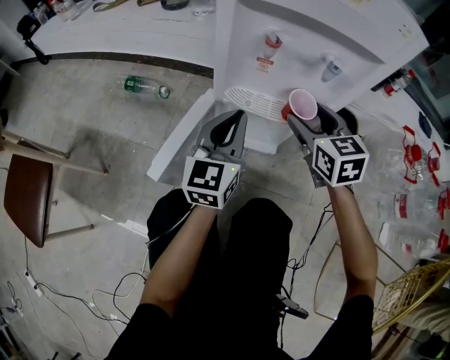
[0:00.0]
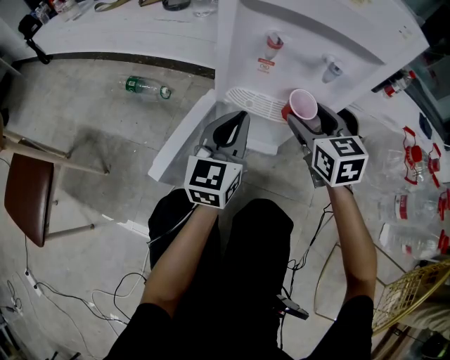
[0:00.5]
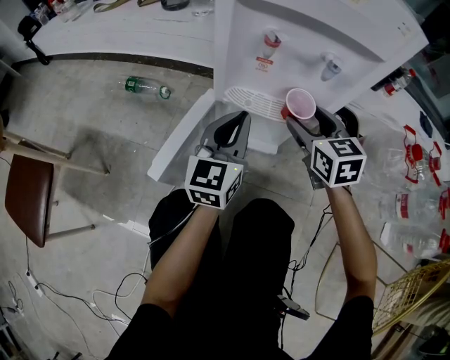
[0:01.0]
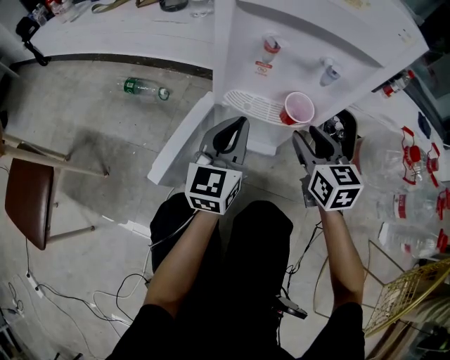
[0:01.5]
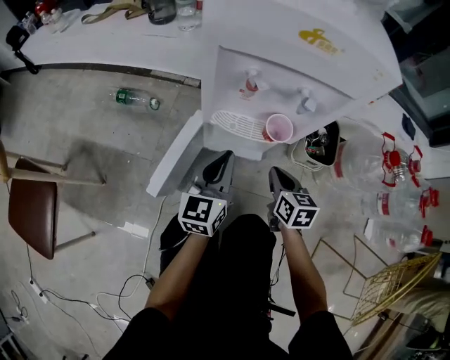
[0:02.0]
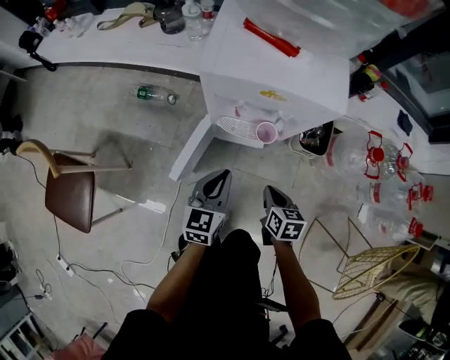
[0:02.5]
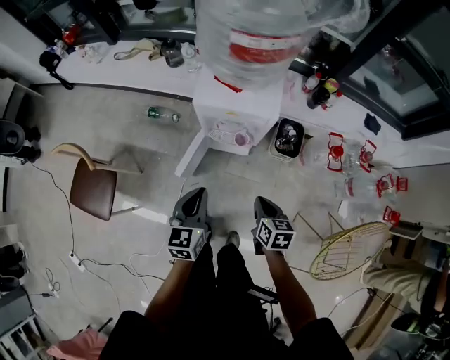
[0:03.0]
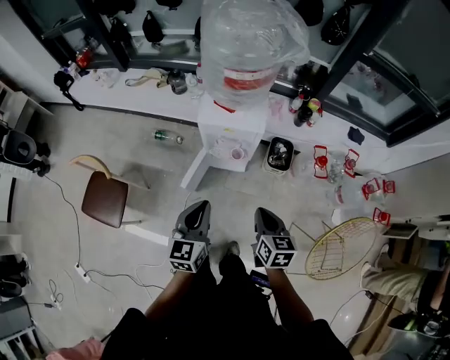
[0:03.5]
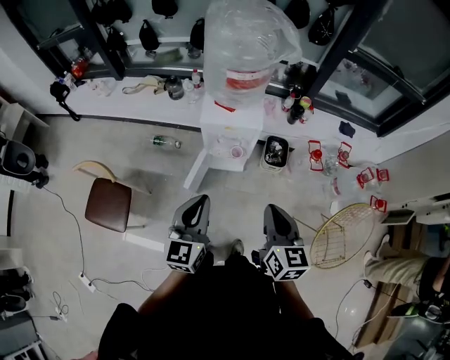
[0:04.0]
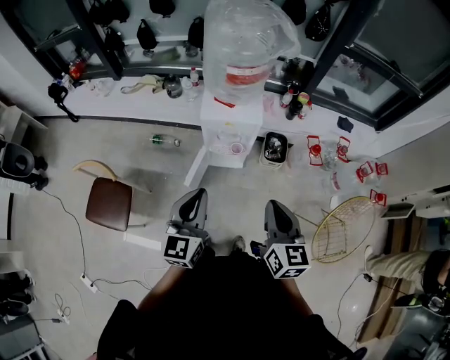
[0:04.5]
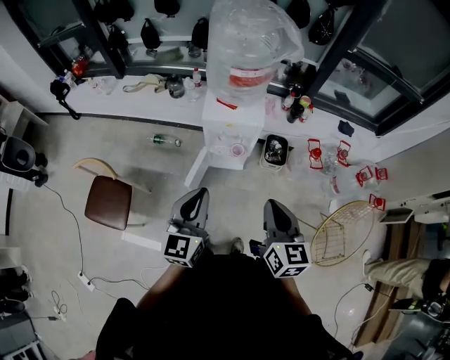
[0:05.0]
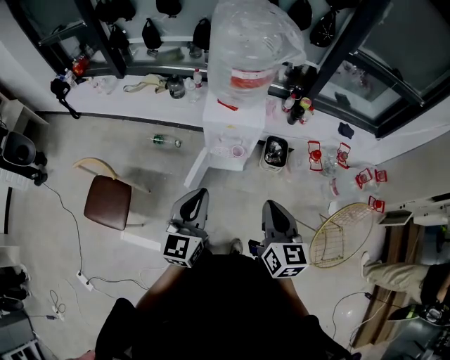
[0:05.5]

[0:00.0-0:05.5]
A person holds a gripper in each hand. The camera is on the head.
0:00.0 to 0:02.0: The right gripper moves downward and backward, some 10 cm, changes its angle by some 30 degrees, and closes its fingers.
0:02.0 to 0:03.5: The two grippers go some 60 cm upward and backward.
0:03.5 to 0:05.5: Both grippers move upward, approximately 15 cm.

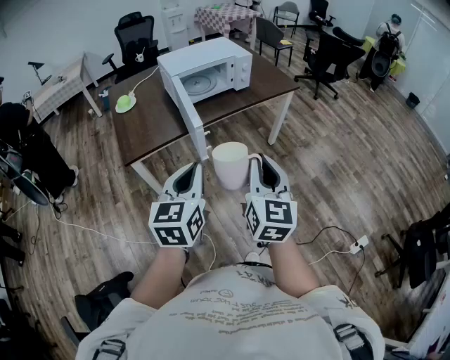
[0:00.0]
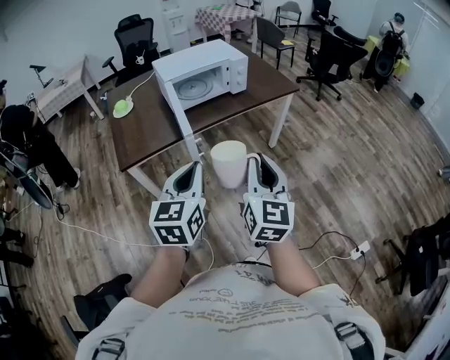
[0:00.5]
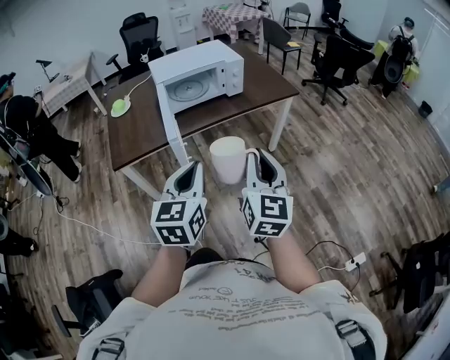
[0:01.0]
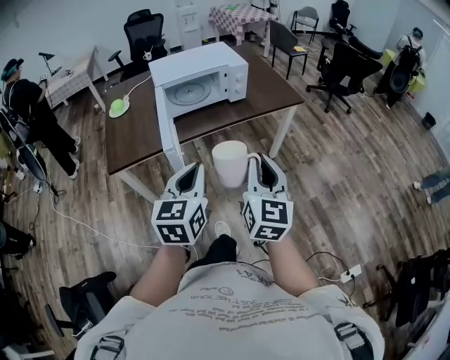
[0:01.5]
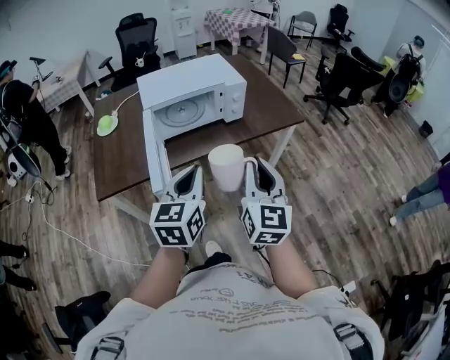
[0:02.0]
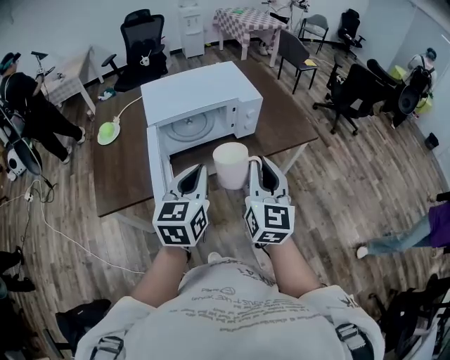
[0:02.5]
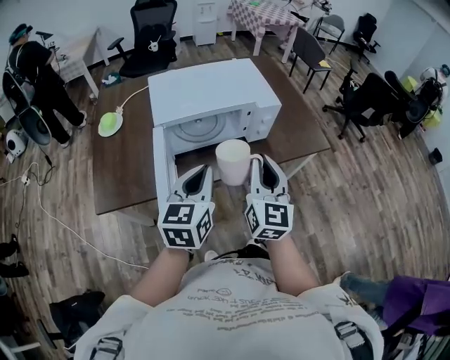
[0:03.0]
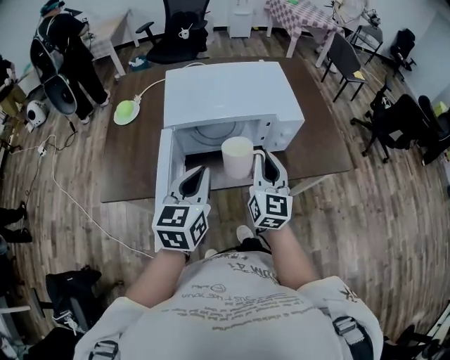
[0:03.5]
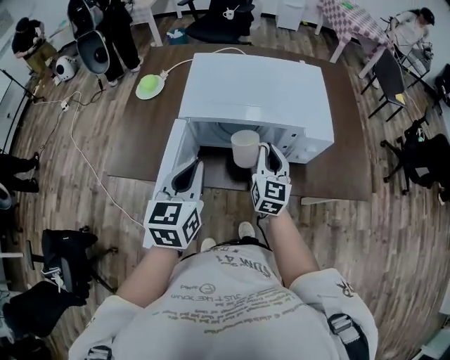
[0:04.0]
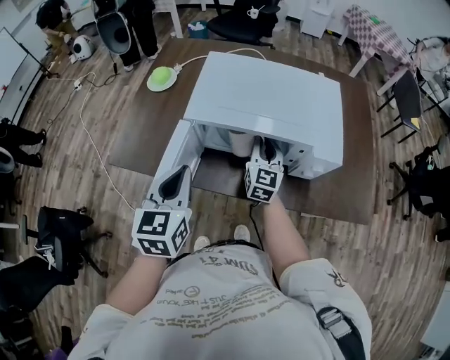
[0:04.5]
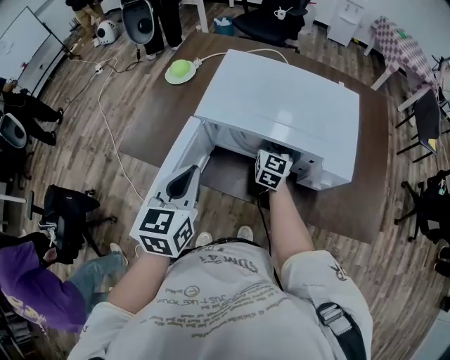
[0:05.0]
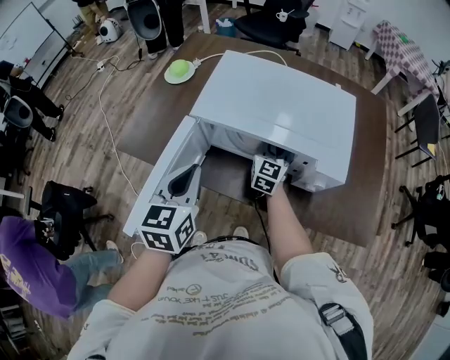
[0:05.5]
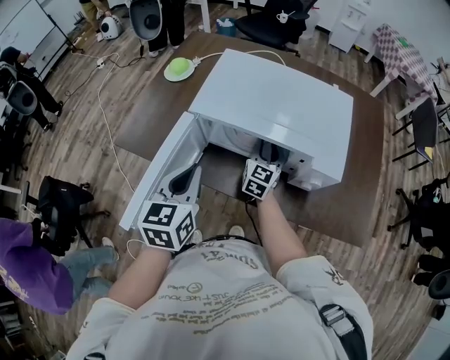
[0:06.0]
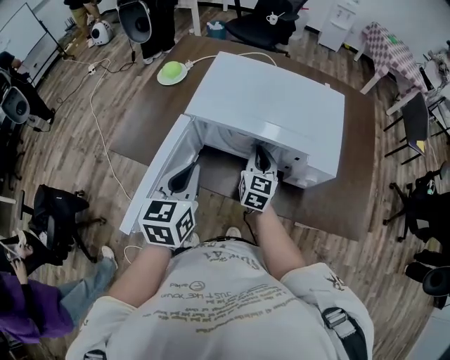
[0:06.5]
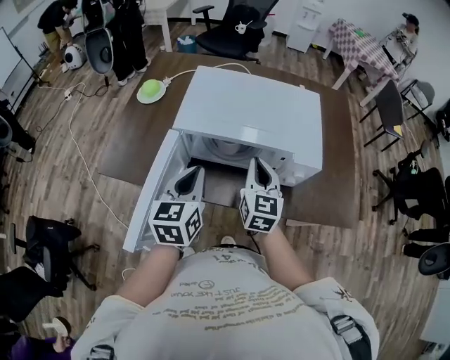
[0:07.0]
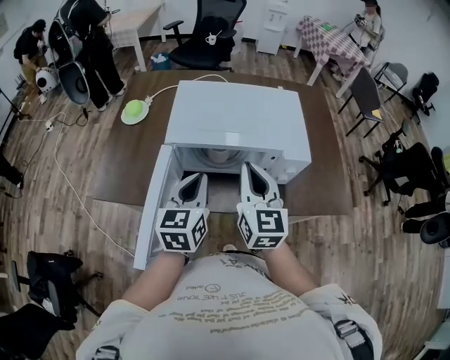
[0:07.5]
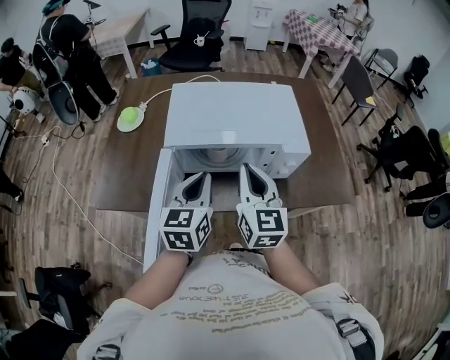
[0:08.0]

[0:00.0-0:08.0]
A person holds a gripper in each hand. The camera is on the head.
0:00.0 to 0:02.0: The right gripper travels forward by approximately 25 cm. The left gripper heads forward and to the right, covering about 30 cm.
0:02.0 to 0:04.0: The right gripper heads forward and downward, covering approximately 40 cm, and turns by some 20 degrees. Meanwhile the left gripper shifts some 25 cm forward, and rotates approximately 30 degrees.
0:04.0 to 0:06.0: The right gripper goes roughly 15 cm forward and downward, and opens up.
0:06.0 to 0:08.0: The right gripper goes some 25 cm upward and backward, and closes its fingers. The left gripper changes its angle by about 20 degrees.

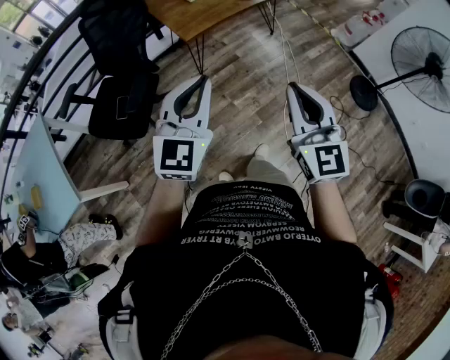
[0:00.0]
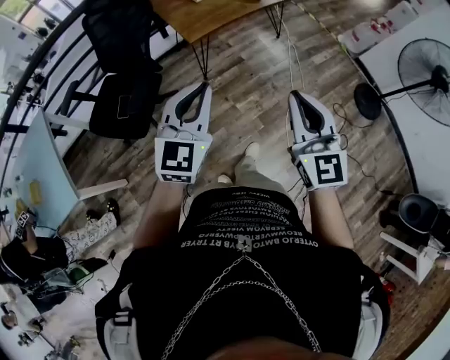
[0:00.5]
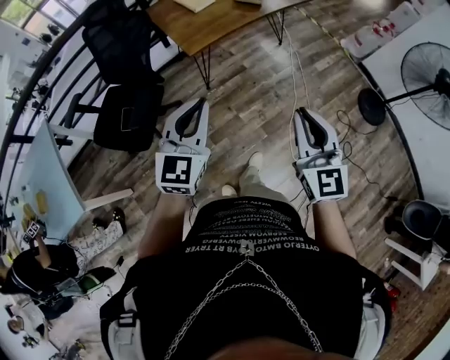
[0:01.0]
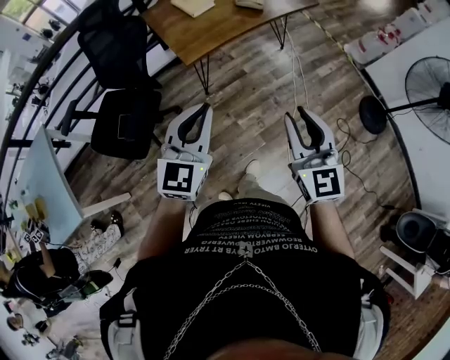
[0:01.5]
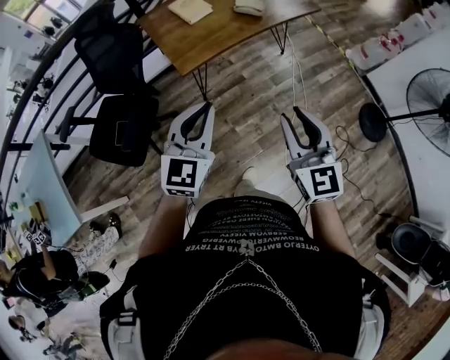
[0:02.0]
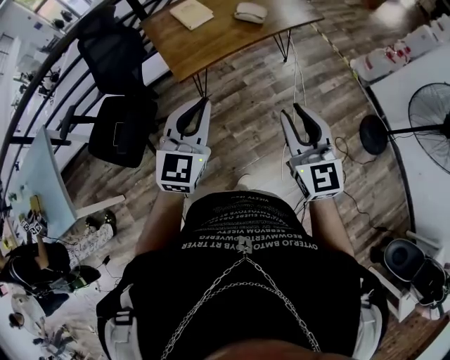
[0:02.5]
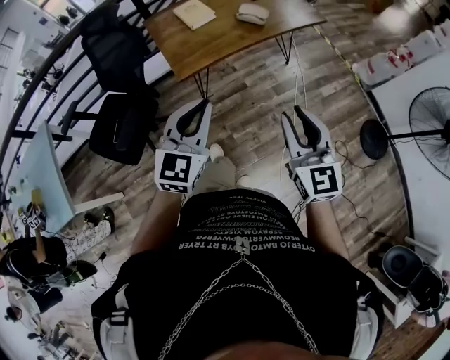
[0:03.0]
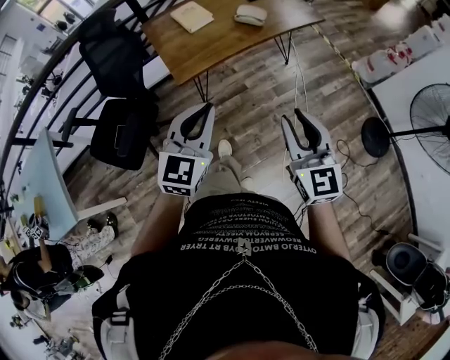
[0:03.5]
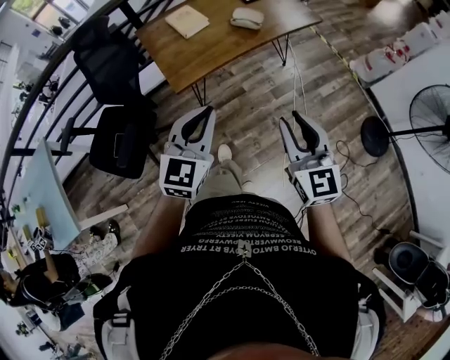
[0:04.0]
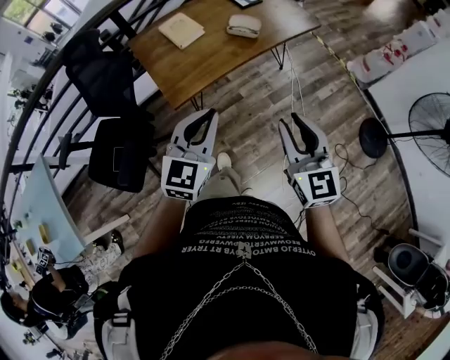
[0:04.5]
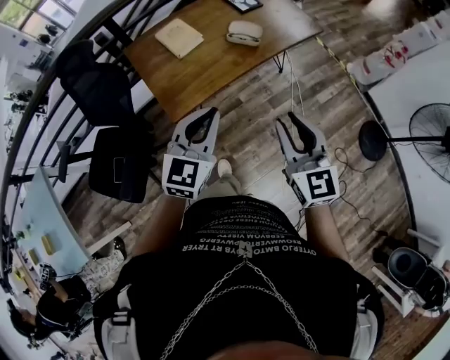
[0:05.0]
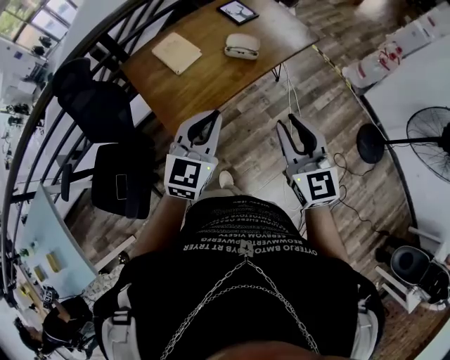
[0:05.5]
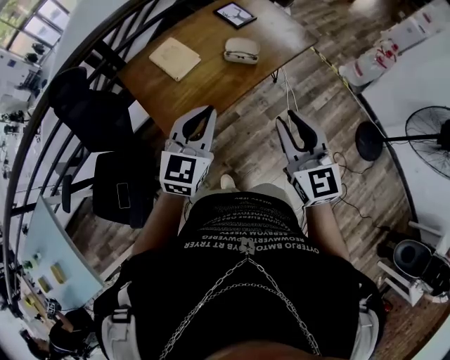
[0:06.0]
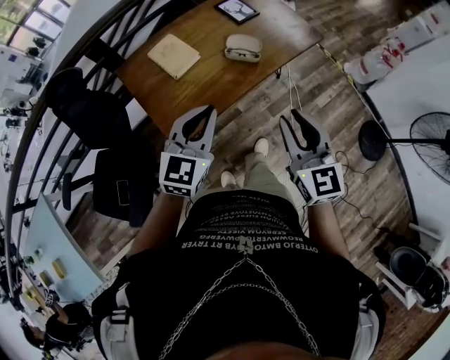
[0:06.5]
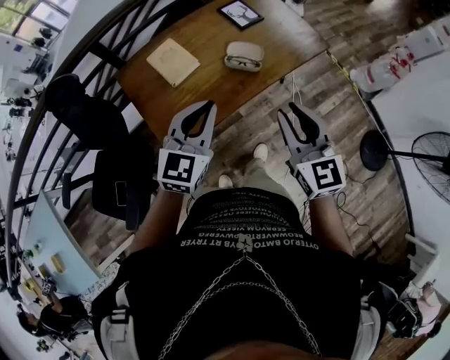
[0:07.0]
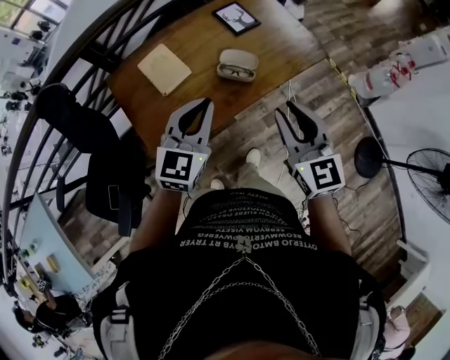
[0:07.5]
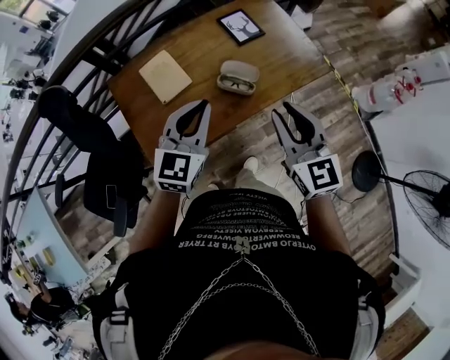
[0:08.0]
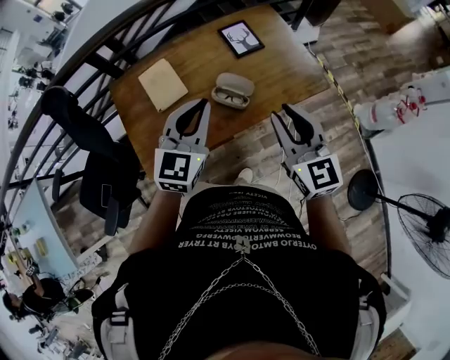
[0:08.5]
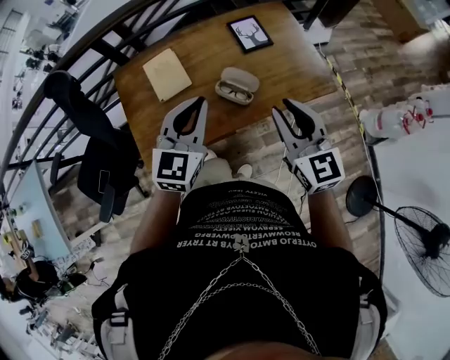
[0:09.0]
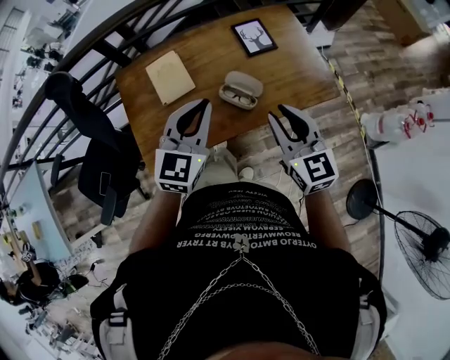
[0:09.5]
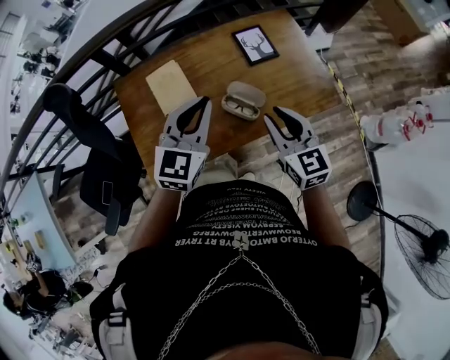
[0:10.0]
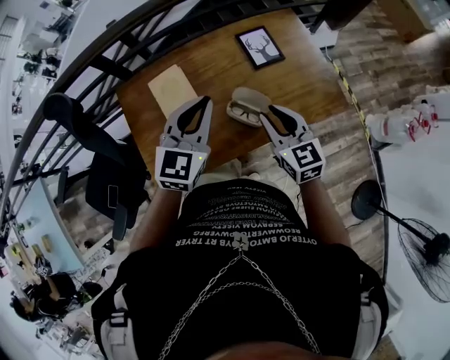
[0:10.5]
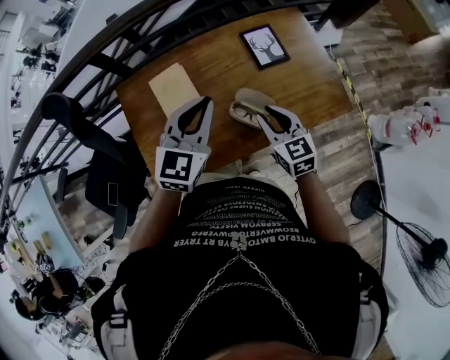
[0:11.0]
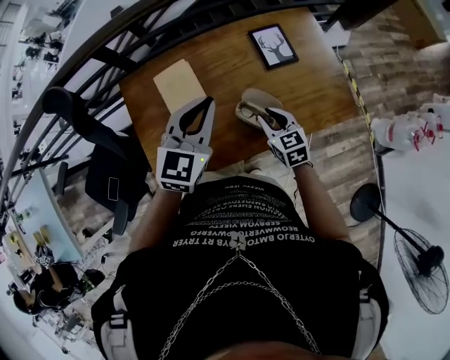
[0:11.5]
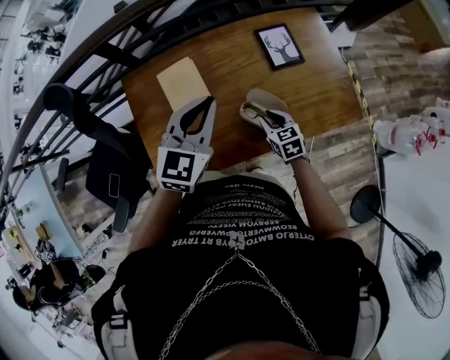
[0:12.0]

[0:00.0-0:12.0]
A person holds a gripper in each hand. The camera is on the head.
0:00.0 to 0:02.0: The two grippers go roughly 20 cm forward. The right gripper opens up.
0:02.0 to 0:04.0: Both grippers move forward and to the right, roughly 10 cm.
0:04.0 to 0:06.0: Both grippers travel together forward, approximately 20 cm.
0:06.0 to 0:08.0: The two grippers go approximately 20 cm forward.
0:08.0 to 0:10.0: The left gripper travels forward by approximately 10 cm; the right gripper goes approximately 15 cm forward and downward.
0:10.0 to 0:12.0: The right gripper goes about 25 cm downward, and changes its angle by approximately 30 degrees. The left gripper is displaced forward by approximately 10 cm.

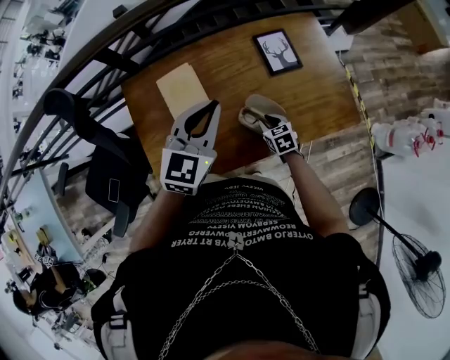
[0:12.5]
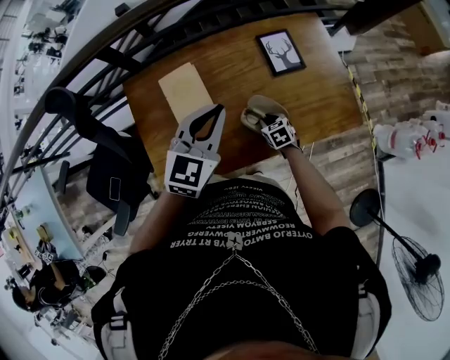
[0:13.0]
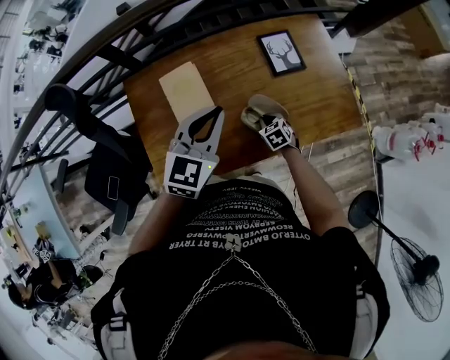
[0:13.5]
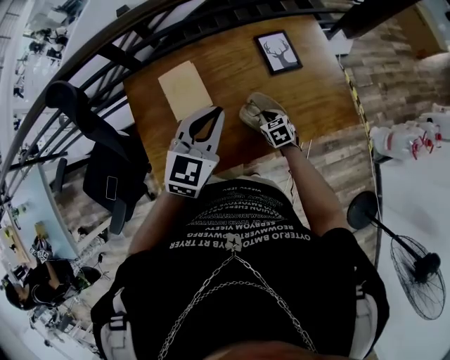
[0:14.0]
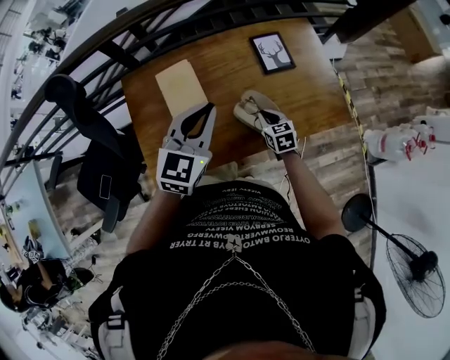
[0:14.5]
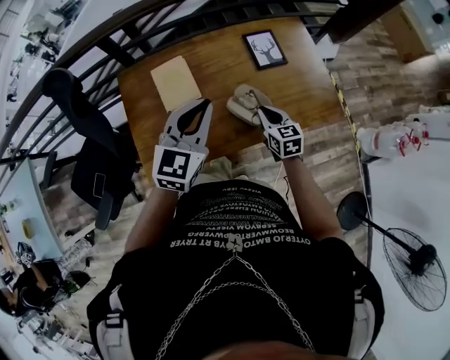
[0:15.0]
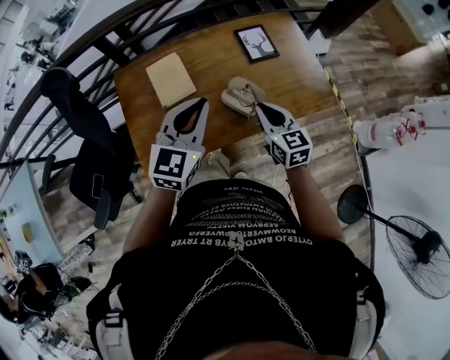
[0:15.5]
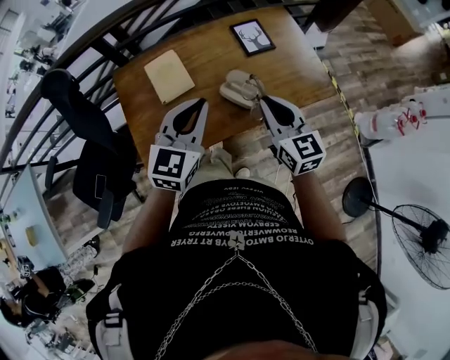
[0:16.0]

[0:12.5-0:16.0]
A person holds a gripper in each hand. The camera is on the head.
0:12.5 to 0:14.5: The left gripper shifts by some 5 cm. The right gripper moves upward, some 5 cm.
0:14.5 to 0:16.0: The right gripper moves upward and backward, about 25 cm, and rotates about 30 degrees, while the left gripper shifts some 10 cm backward.
